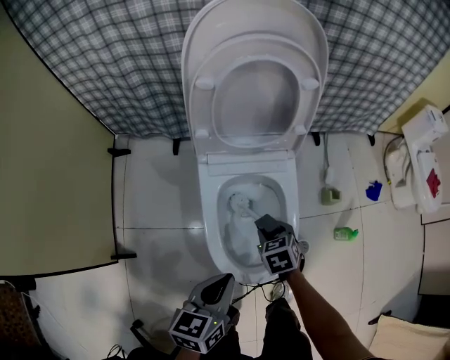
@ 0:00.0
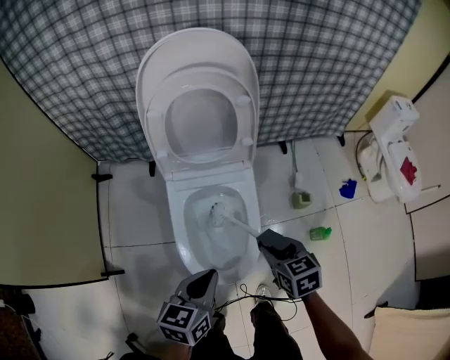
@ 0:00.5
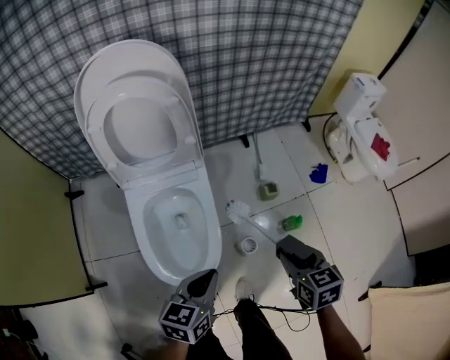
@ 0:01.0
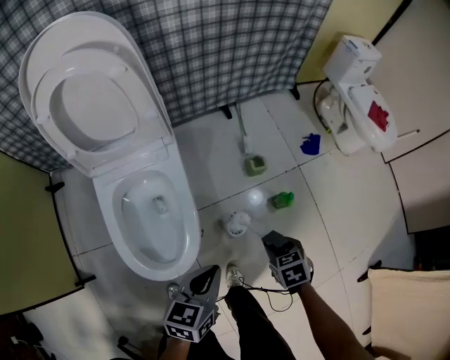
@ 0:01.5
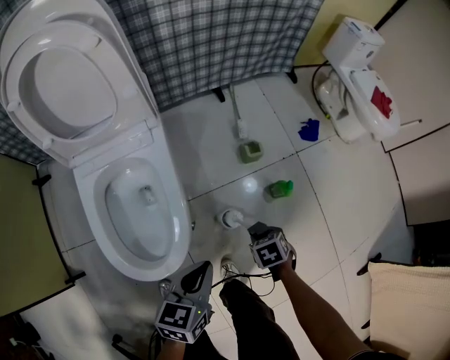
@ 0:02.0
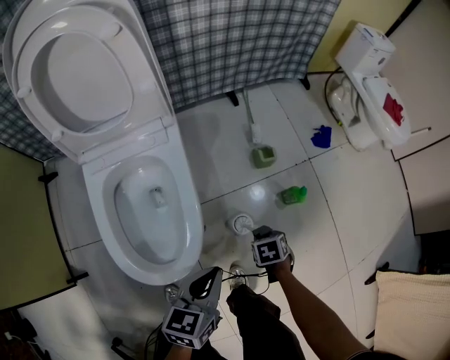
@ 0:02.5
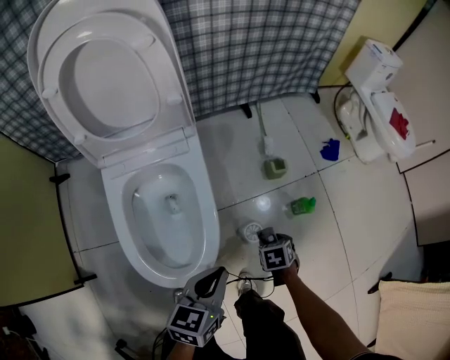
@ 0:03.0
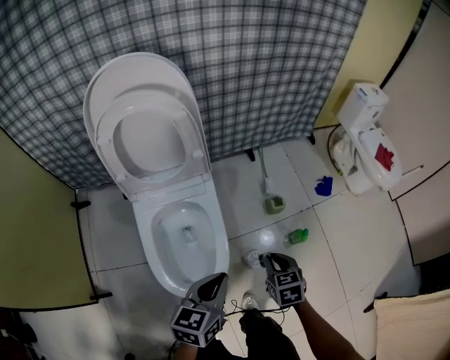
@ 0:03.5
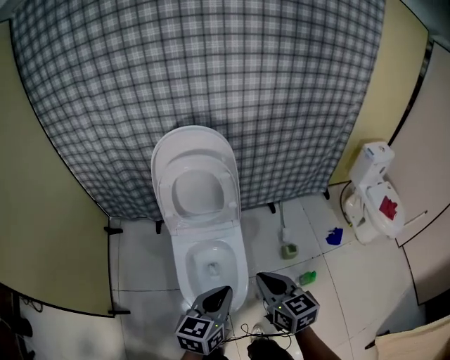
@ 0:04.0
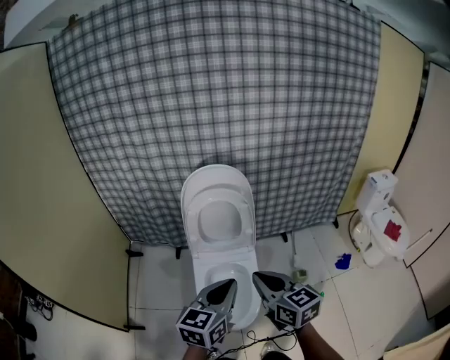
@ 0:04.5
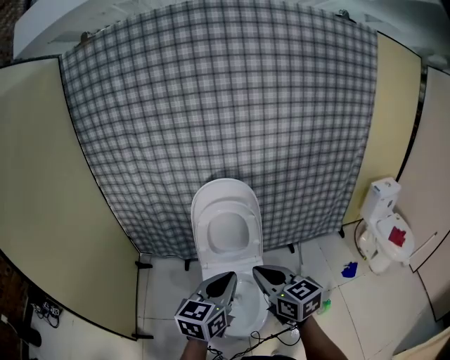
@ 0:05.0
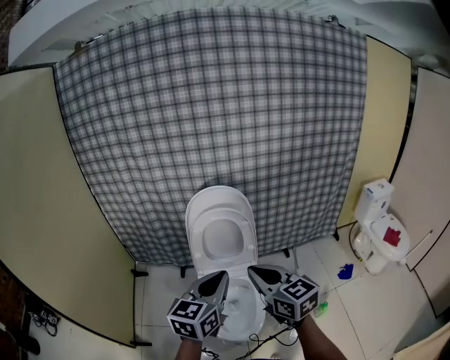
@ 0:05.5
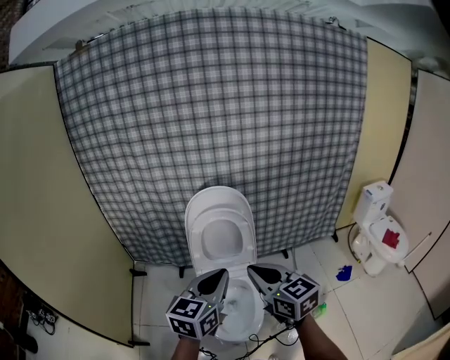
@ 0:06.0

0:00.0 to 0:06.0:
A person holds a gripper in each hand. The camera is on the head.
0:00.0 to 0:02.0: The left gripper moves about 30 cm; the right gripper shifts by some 40 cm, and swivels about 30 degrees.
0:02.0 to 0:04.0: The left gripper is displaced upward by some 20 cm. Meanwhile the right gripper travels upward by approximately 35 cm, tilts its fingers some 50 degrees upward, and closes.
0:04.0 to 0:06.0: The two grippers go some 25 cm upward and to the left. The right gripper swivels about 20 degrees.

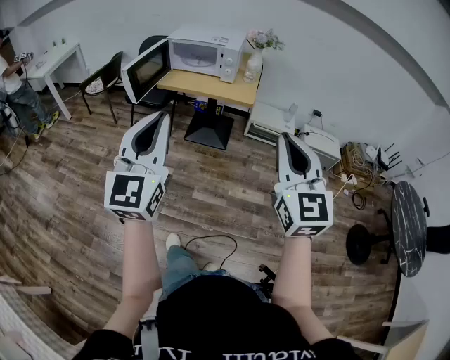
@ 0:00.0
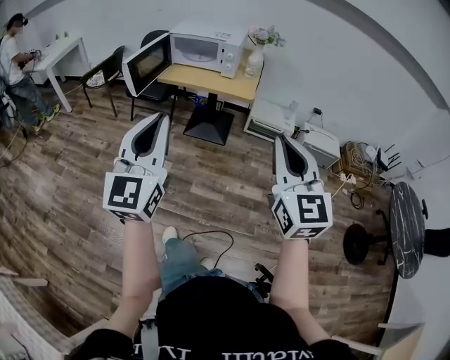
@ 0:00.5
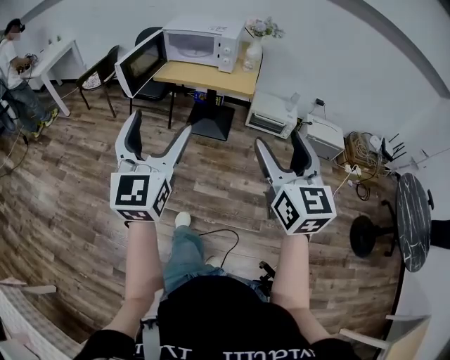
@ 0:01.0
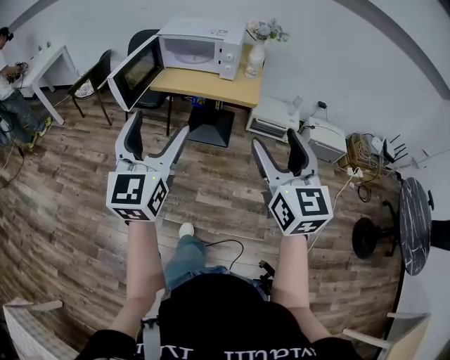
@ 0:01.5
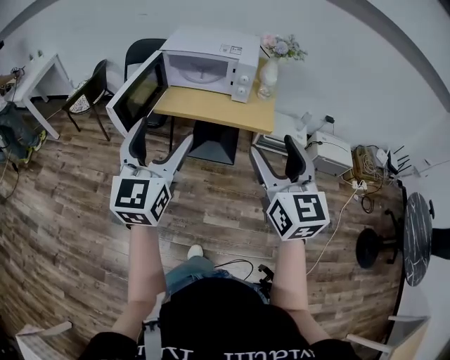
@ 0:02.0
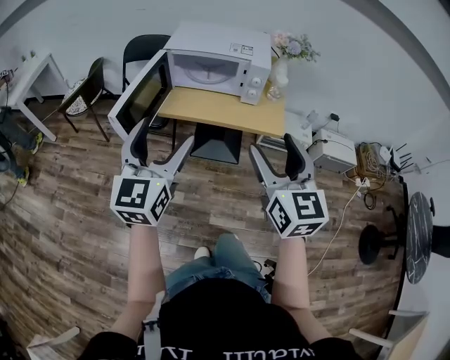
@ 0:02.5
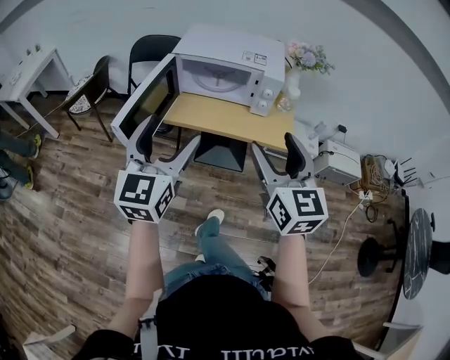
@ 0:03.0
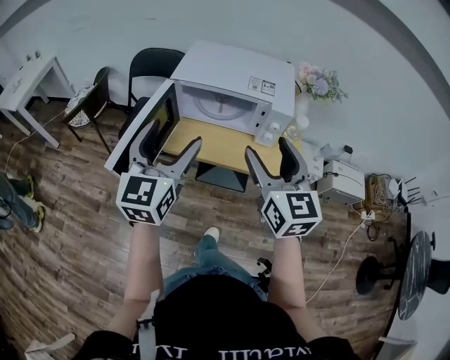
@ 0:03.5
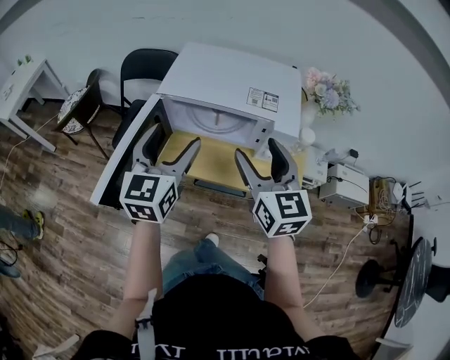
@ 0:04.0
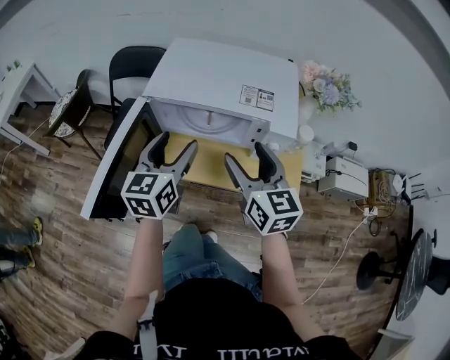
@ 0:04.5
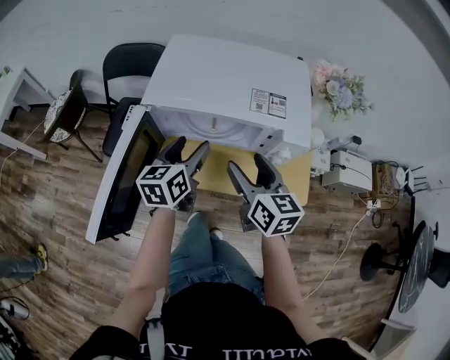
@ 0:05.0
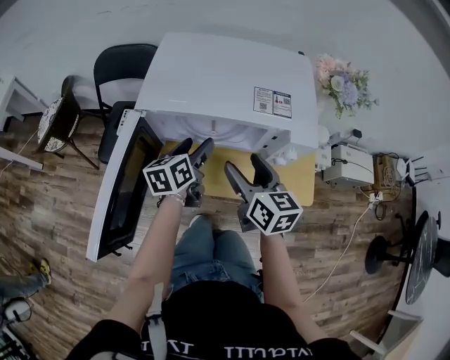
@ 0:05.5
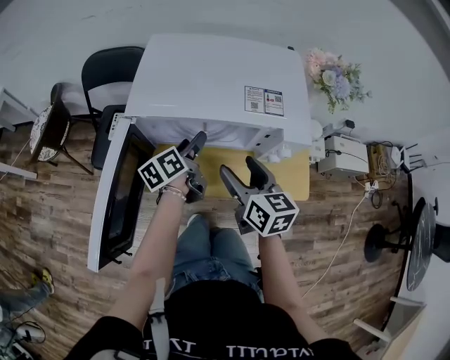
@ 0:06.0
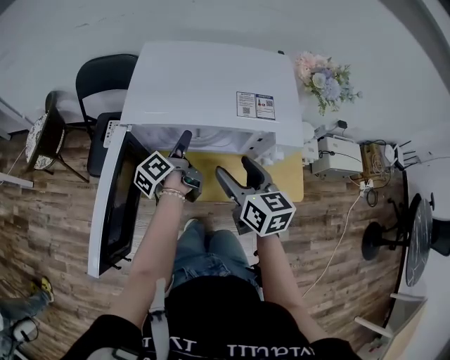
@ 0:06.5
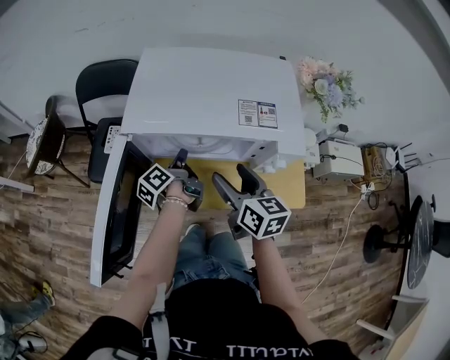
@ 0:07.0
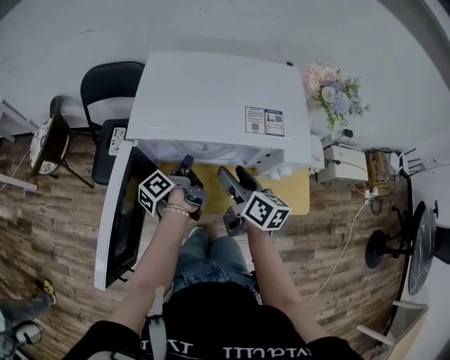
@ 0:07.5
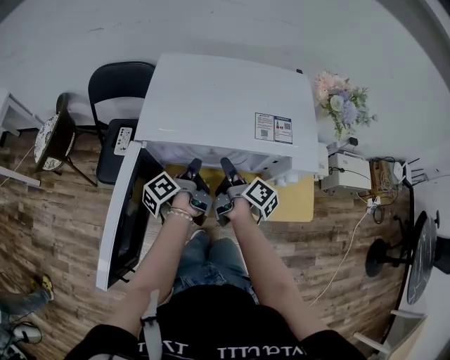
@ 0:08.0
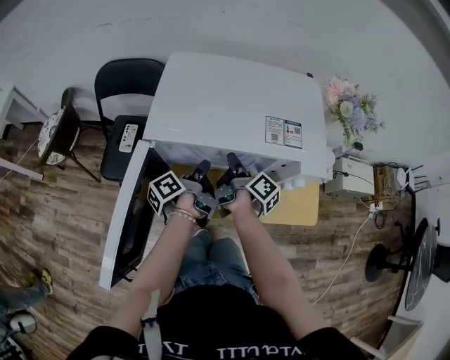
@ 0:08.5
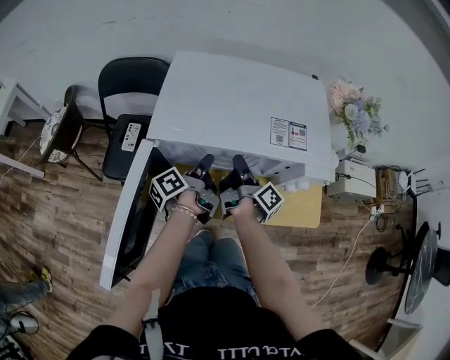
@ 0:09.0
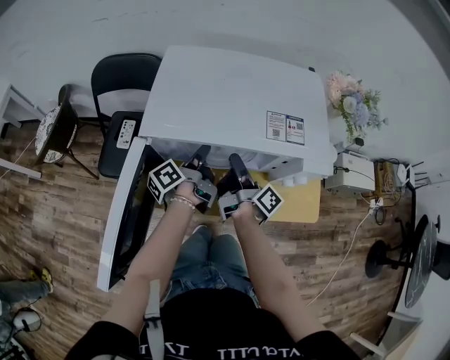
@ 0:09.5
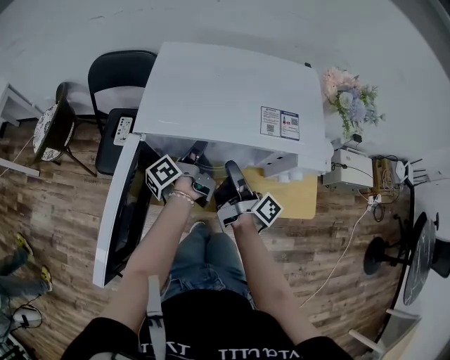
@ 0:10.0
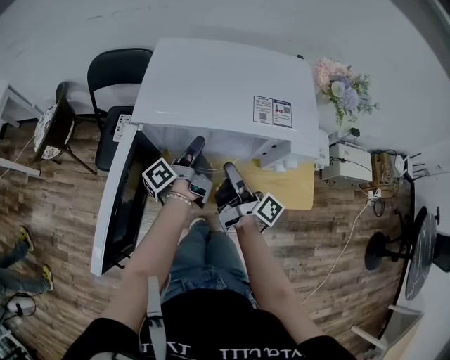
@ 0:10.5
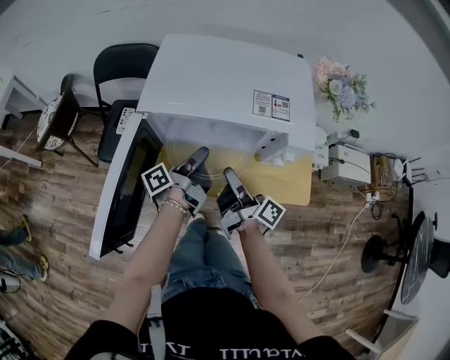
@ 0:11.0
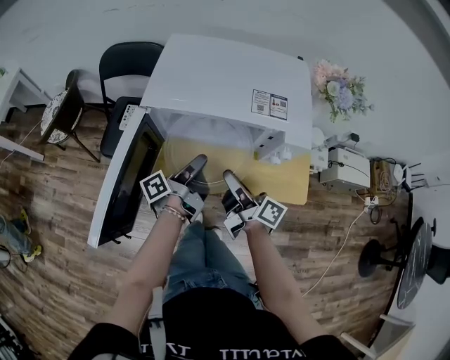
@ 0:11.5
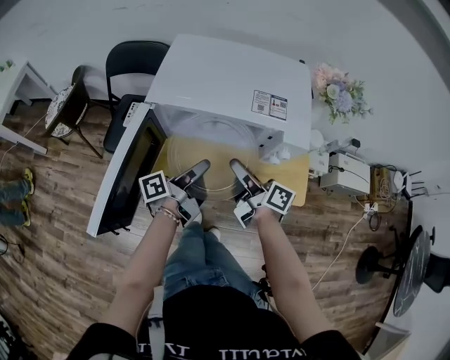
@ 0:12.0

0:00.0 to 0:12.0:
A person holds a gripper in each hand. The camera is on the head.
0:00.0 to 0:02.0: The left gripper shifts some 30 cm forward, and opens its fingers, while the right gripper shifts roughly 30 cm forward and to the left, and opens its fingers.
0:02.0 to 0:04.0: Both grippers travel together forward, about 40 cm.
0:04.0 to 0:06.0: The left gripper moves downward and forward, some 30 cm, and rotates around the line of its fingers by about 50 degrees, counterclockwise from behind. Meanwhile the right gripper is displaced downward and forward by roughly 20 cm, and turns by approximately 30 degrees.
0:06.0 to 0:08.0: The left gripper rotates roughly 30 degrees, and closes its fingers; the right gripper travels forward and downward by some 10 cm, rotates around the line of its fingers by roughly 60 degrees, clockwise from behind, and closes up.
0:08.0 to 0:10.0: The right gripper swivels some 20 degrees.
0:10.0 to 0:12.0: The right gripper travels backward by approximately 5 cm, and changes its angle by approximately 30 degrees. The left gripper goes about 15 cm backward.

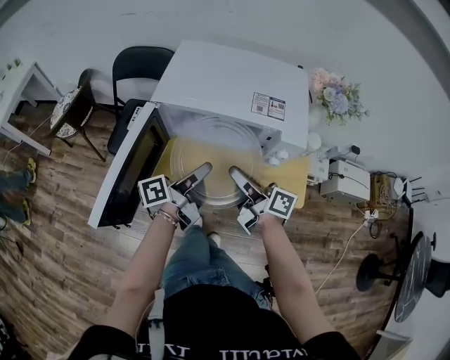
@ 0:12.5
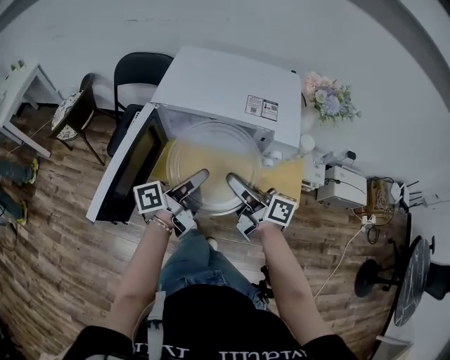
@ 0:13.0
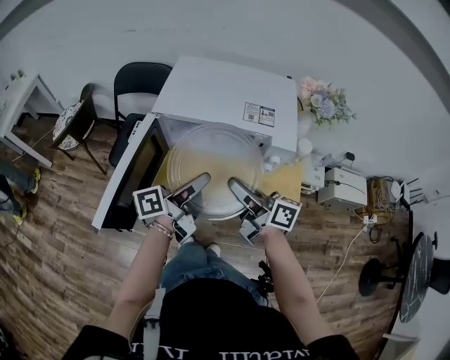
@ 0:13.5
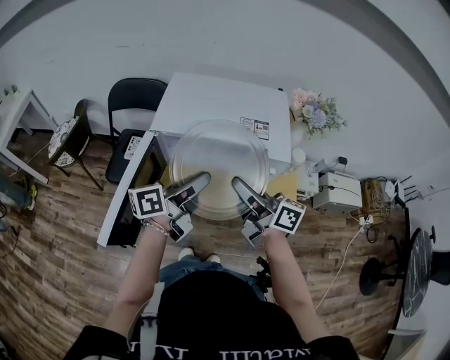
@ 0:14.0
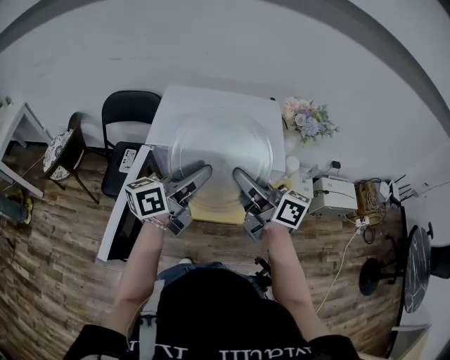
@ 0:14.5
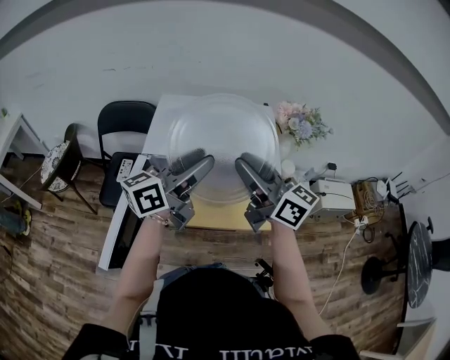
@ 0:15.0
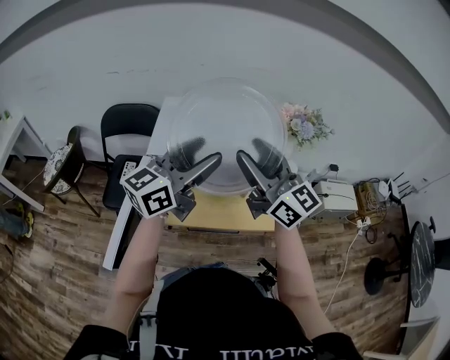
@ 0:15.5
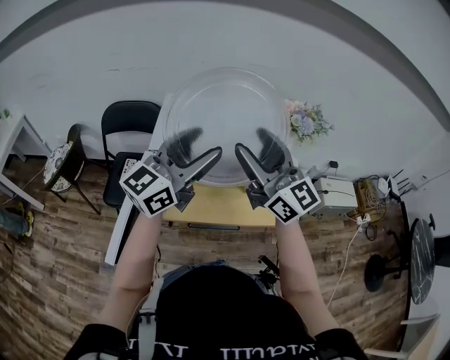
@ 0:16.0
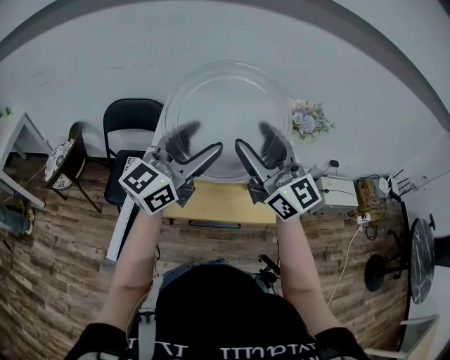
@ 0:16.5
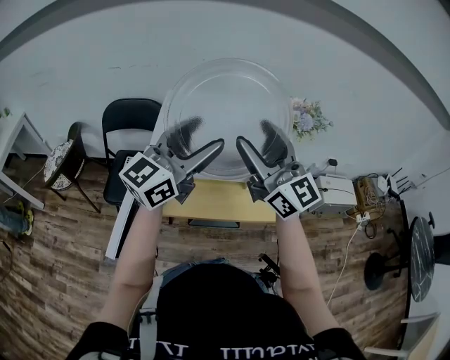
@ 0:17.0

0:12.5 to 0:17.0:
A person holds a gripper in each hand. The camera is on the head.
0:12.5 to 0:14.5: The two grippers go some 15 cm upward. The right gripper changes its angle by roughly 20 degrees. Meanwhile the left gripper changes its angle by some 40 degrees.
0:14.5 to 0:17.0: The two grippers go roughly 10 cm upward. The left gripper rotates about 40 degrees, and opens, while the right gripper twists some 50 degrees counterclockwise, seen from behind, and opens.

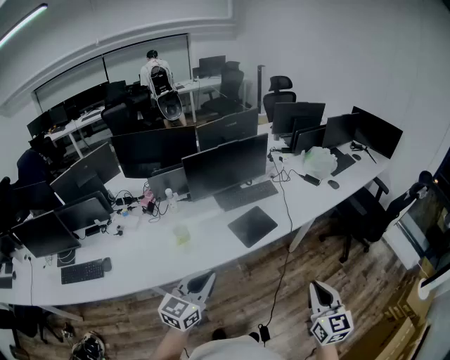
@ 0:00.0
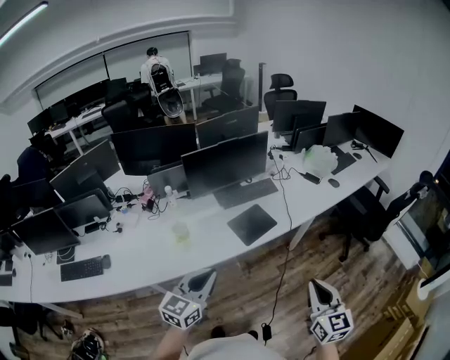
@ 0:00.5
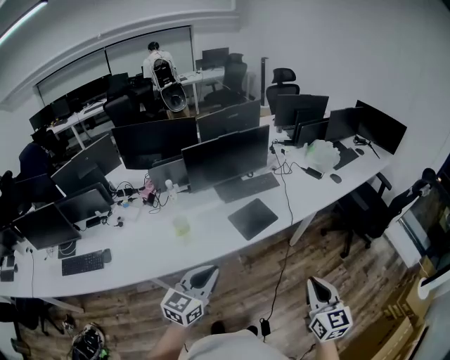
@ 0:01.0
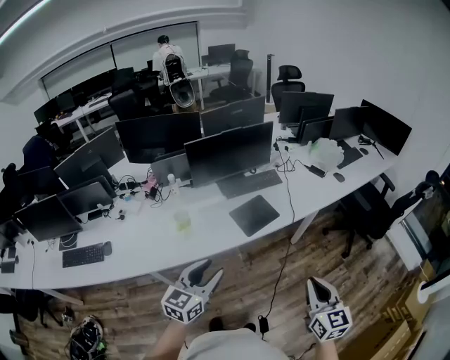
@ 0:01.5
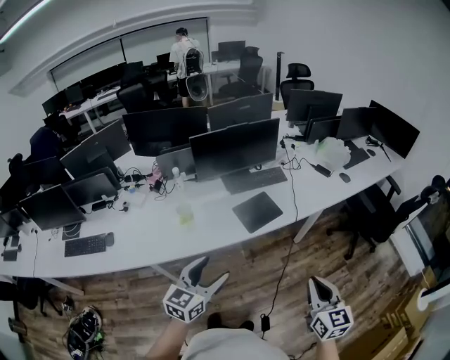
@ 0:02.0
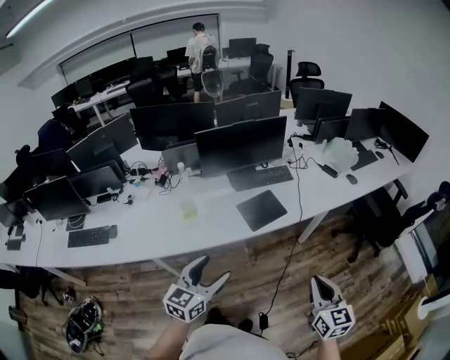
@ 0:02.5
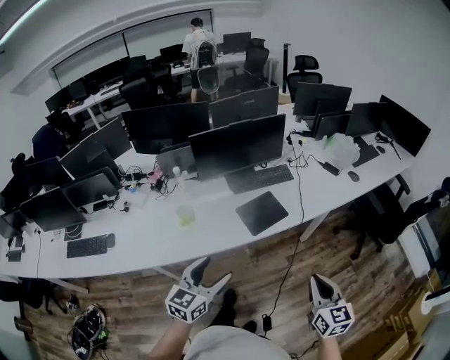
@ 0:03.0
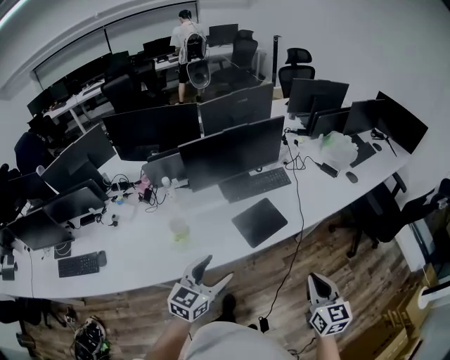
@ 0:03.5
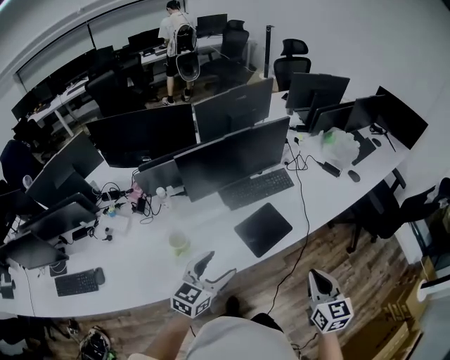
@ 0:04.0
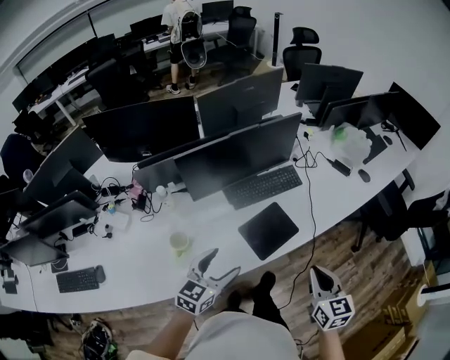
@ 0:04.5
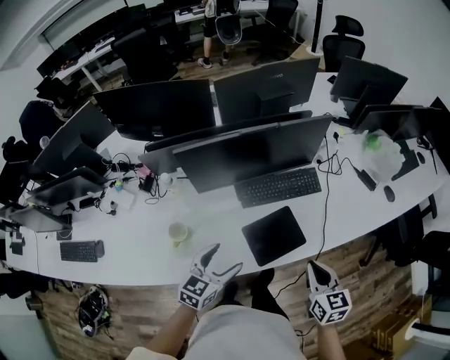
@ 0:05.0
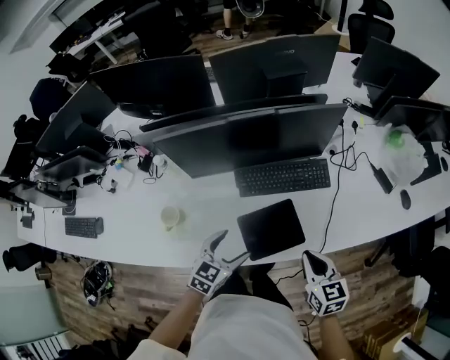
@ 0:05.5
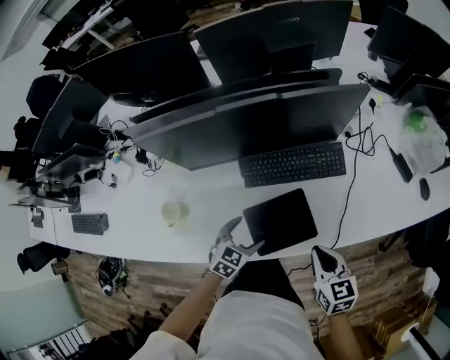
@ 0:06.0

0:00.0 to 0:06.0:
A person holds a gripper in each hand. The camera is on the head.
0:00.0 to 0:02.0: The left gripper shifts by some 5 cm, and opens up.
0:02.0 to 0:04.0: The left gripper heads forward, covering approximately 25 cm, while the right gripper moves forward and to the left, about 25 cm.
0:04.0 to 0:06.0: The left gripper travels downward, forward and to the right by some 35 cm, and angles its fingers downward, by about 30 degrees; the right gripper heads forward and downward, covering some 30 cm, and turns by about 30 degrees.
